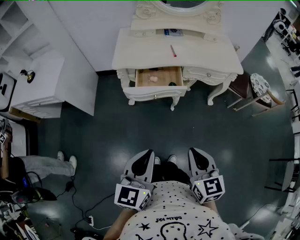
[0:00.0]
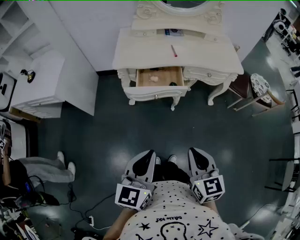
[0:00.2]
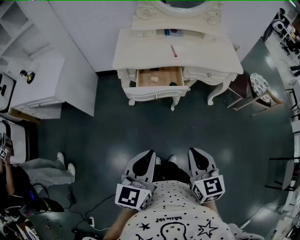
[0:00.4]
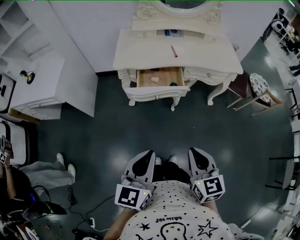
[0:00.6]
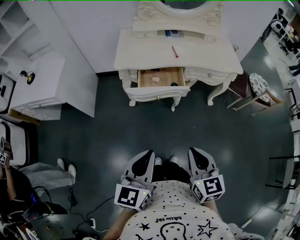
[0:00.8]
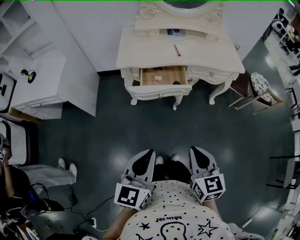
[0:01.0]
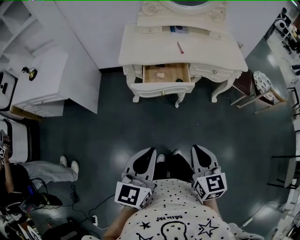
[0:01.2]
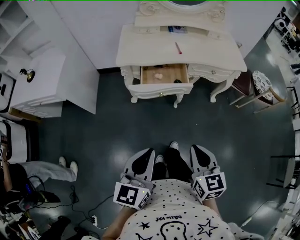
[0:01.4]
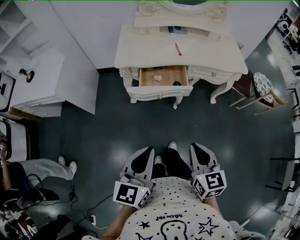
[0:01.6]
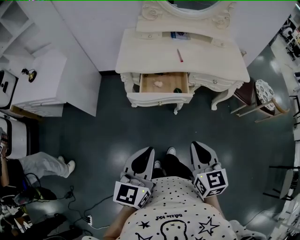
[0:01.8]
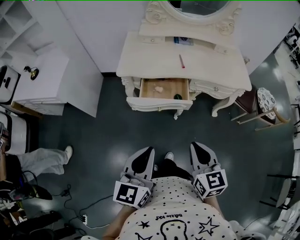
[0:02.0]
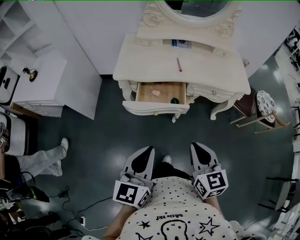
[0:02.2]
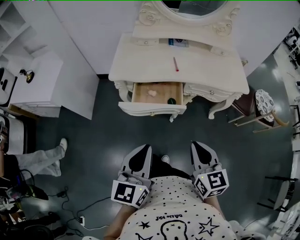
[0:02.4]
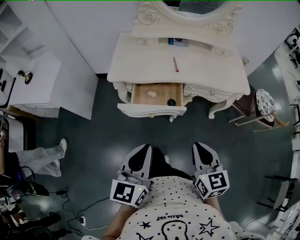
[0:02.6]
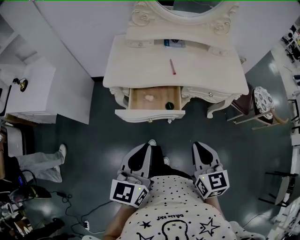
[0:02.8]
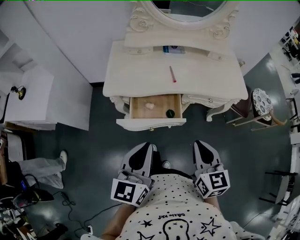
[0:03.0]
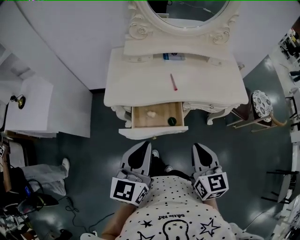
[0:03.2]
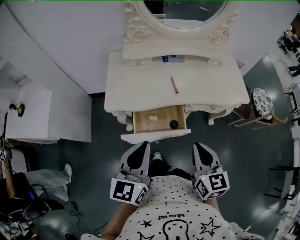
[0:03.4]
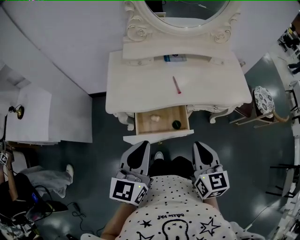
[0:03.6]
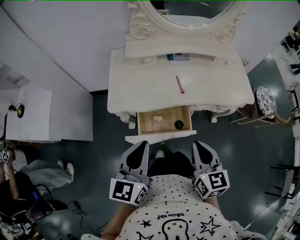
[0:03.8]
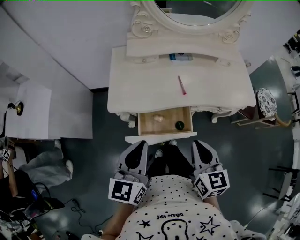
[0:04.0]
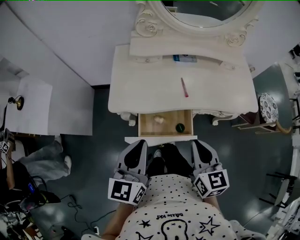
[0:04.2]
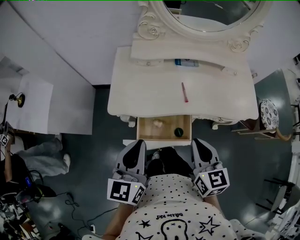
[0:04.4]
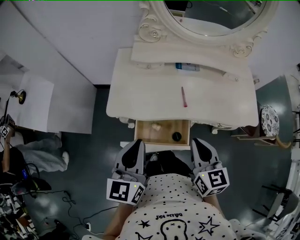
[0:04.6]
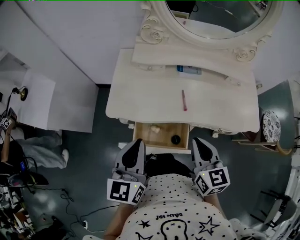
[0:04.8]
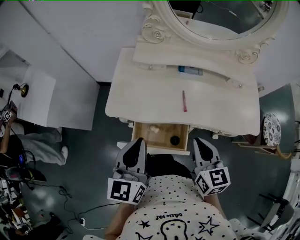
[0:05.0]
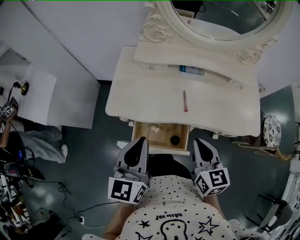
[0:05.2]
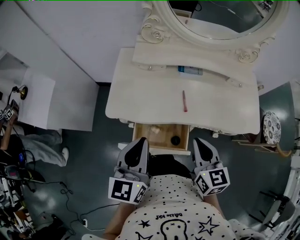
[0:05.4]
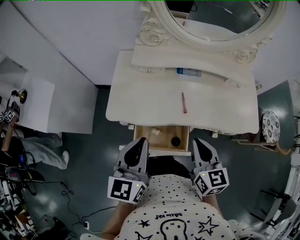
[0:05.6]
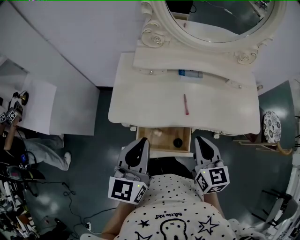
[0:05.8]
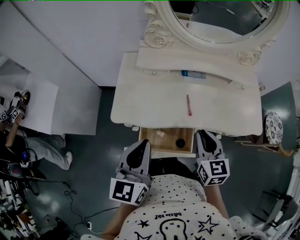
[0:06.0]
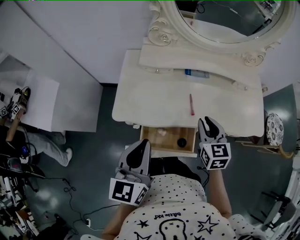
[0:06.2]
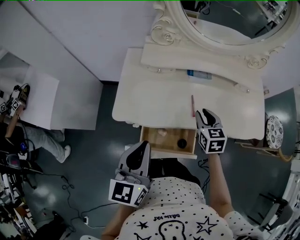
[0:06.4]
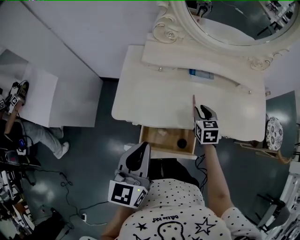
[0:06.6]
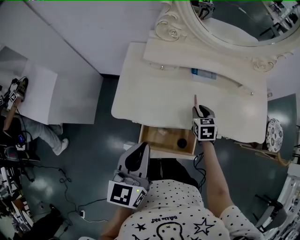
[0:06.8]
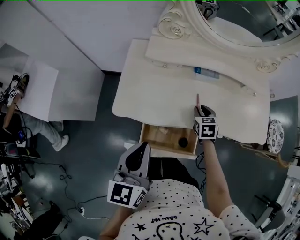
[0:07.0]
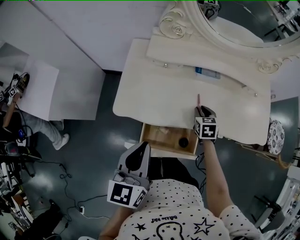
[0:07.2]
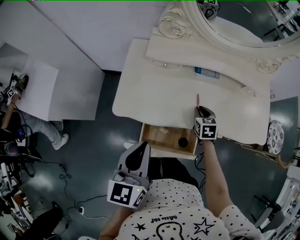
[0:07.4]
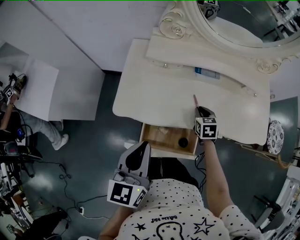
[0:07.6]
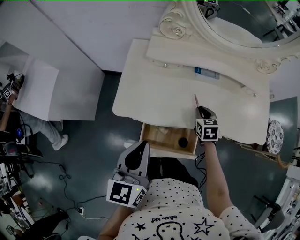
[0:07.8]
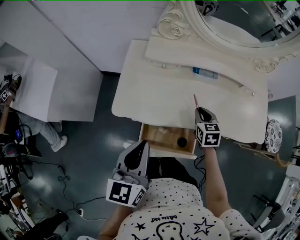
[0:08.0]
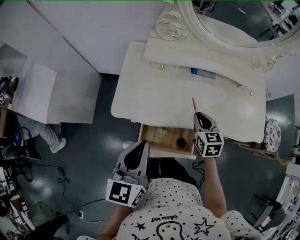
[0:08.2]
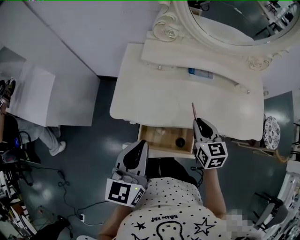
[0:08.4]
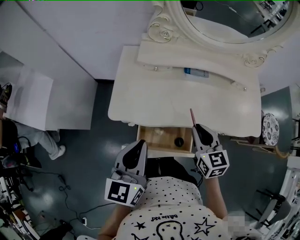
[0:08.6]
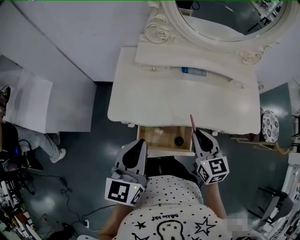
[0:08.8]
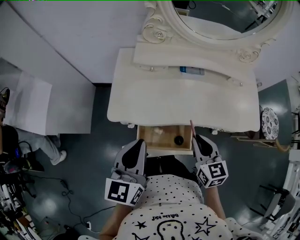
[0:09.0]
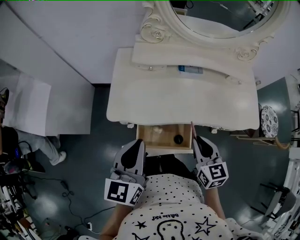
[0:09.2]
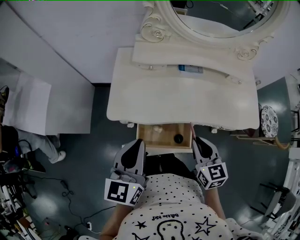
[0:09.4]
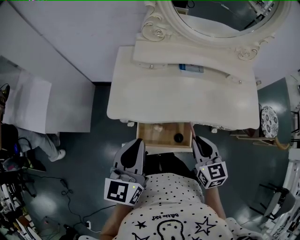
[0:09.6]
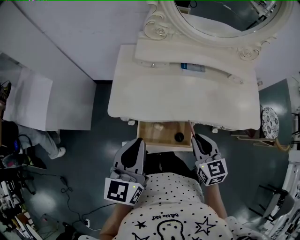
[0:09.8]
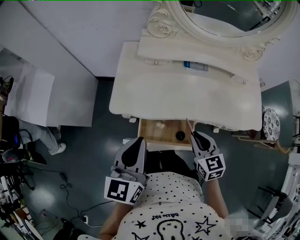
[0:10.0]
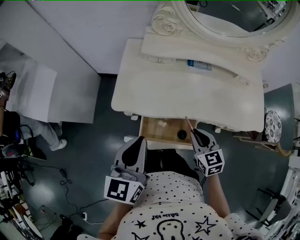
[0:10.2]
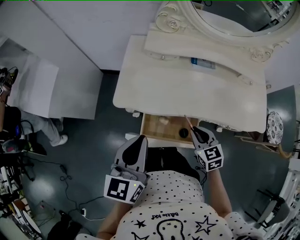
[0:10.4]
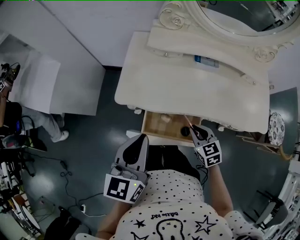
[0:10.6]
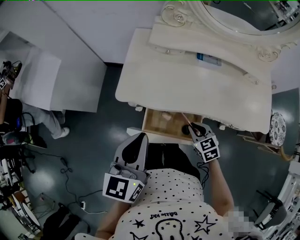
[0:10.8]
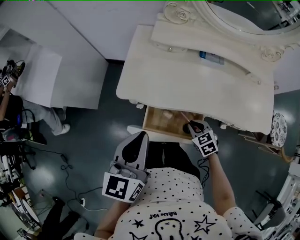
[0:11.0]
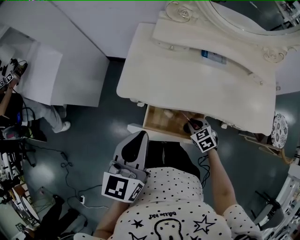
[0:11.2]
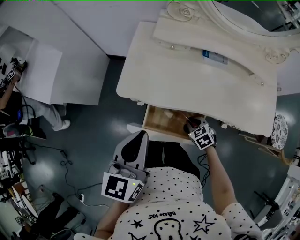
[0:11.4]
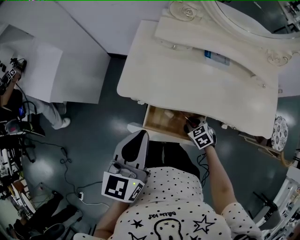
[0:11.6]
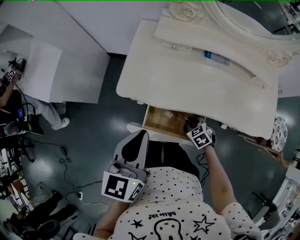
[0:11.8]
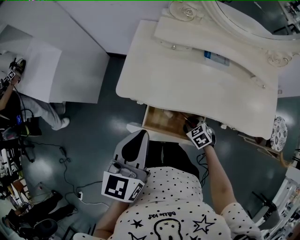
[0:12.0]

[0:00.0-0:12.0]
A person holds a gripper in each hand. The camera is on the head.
0:00.0 to 0:01.6: The grippers move only a little.
0:01.6 to 0:03.0: The two grippers go roughly 20 cm forward.
0:03.0 to 0:04.4: The right gripper moves forward, roughly 15 cm. The left gripper heads forward and to the left, covering approximately 15 cm.
0:04.4 to 0:06.0: The right gripper goes roughly 10 cm forward. Meanwhile the left gripper is displaced forward by approximately 5 cm.
0:06.0 to 0:07.6: The right gripper goes approximately 25 cm downward and forward, and swivels roughly 20 degrees.
0:07.6 to 0:09.0: The right gripper is displaced backward and upward by about 25 cm, and rotates roughly 20 degrees.
0:09.0 to 0:10.4: The right gripper shifts some 10 cm downward.
0:10.4 to 0:12.0: The right gripper is displaced downward by approximately 15 cm, and turns by some 30 degrees.

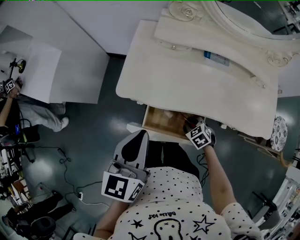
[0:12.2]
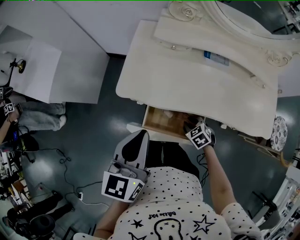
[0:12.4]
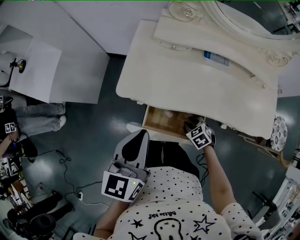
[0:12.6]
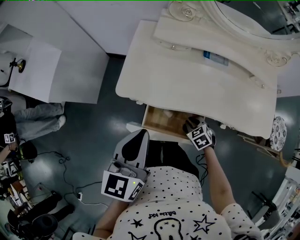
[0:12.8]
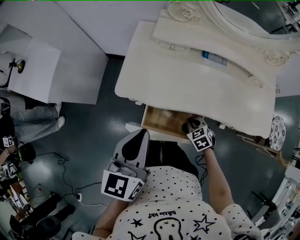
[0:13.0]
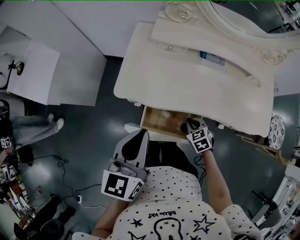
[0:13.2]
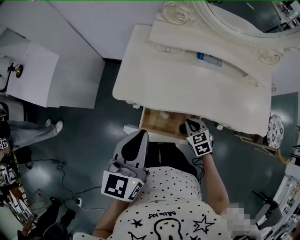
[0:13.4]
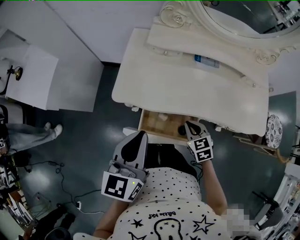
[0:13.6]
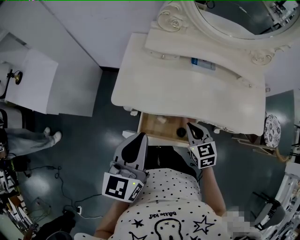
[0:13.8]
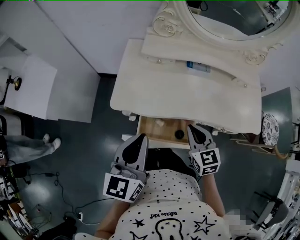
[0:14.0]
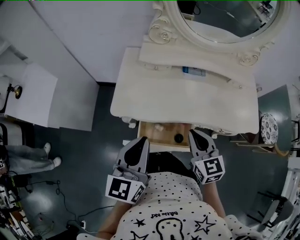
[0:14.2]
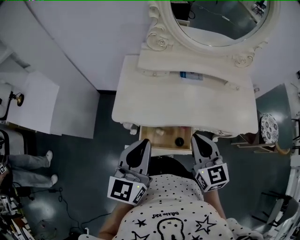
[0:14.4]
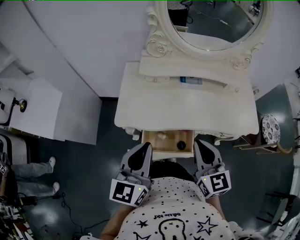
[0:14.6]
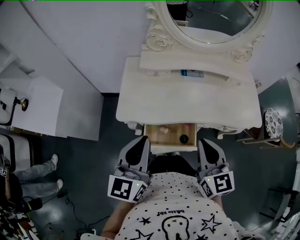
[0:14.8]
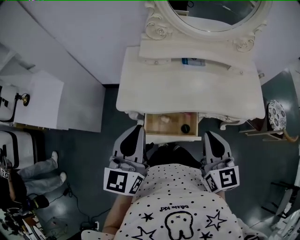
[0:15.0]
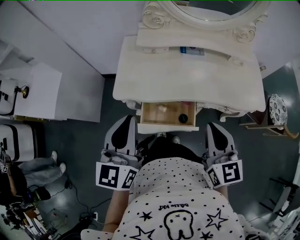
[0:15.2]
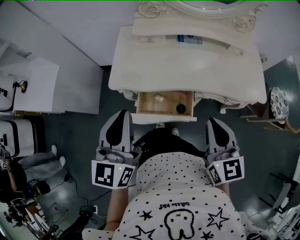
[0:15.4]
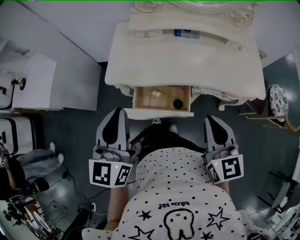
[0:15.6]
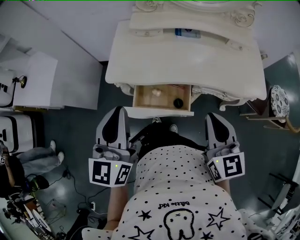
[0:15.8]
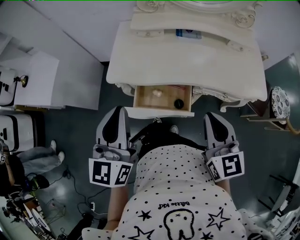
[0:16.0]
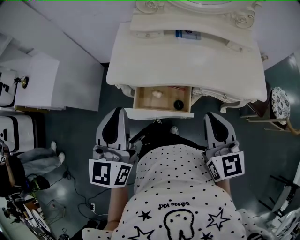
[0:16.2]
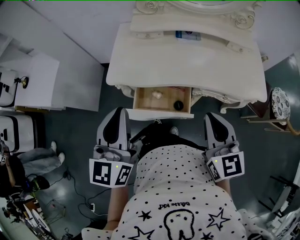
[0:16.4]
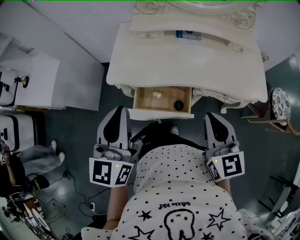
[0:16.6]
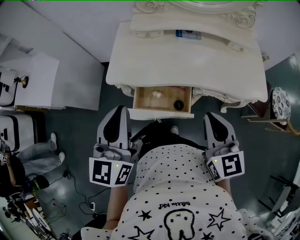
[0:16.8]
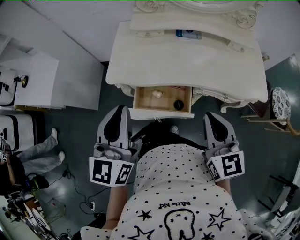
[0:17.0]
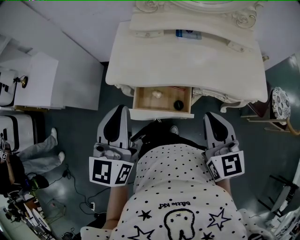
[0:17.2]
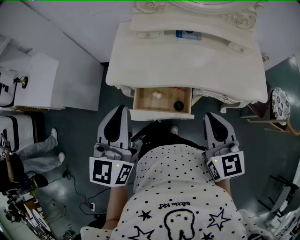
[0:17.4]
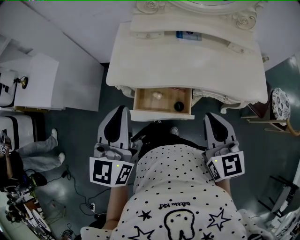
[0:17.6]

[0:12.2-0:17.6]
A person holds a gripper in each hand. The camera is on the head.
0:12.2 to 0:13.6: The right gripper shifts roughly 10 cm upward, and turns by approximately 20 degrees.
0:13.6 to 0:15.0: The left gripper is displaced upward by some 5 cm. The right gripper is displaced upward by roughly 25 cm, and angles its fingers upward, by some 30 degrees.
0:15.0 to 0:16.2: The left gripper goes approximately 5 cm backward. The right gripper moves some 5 cm.
0:16.2 to 0:17.6: The grippers make only small movements.

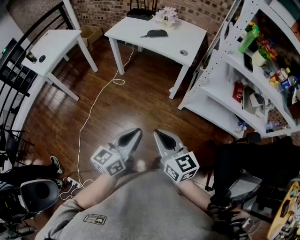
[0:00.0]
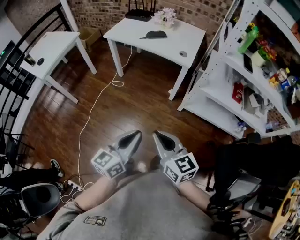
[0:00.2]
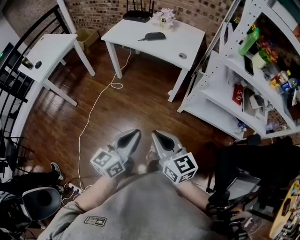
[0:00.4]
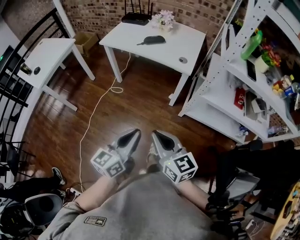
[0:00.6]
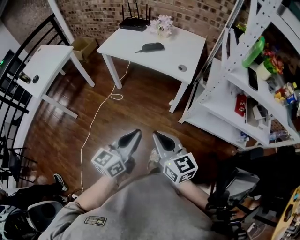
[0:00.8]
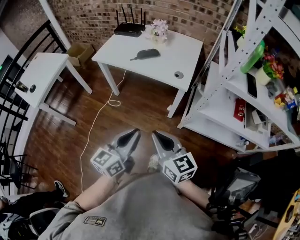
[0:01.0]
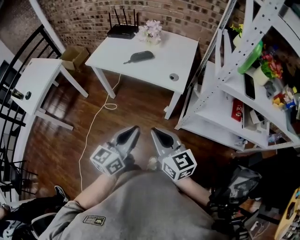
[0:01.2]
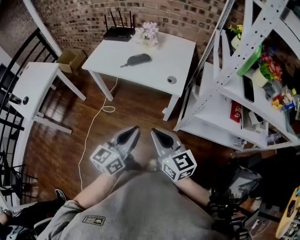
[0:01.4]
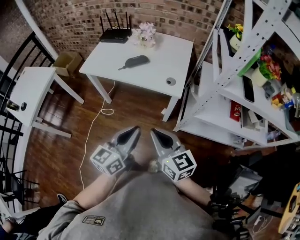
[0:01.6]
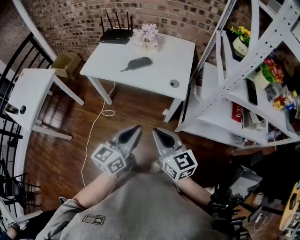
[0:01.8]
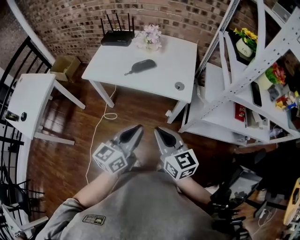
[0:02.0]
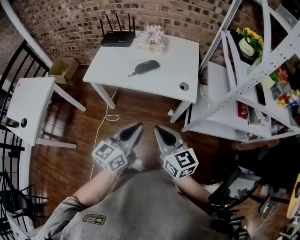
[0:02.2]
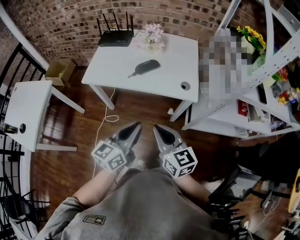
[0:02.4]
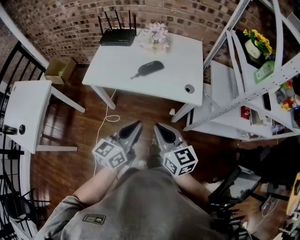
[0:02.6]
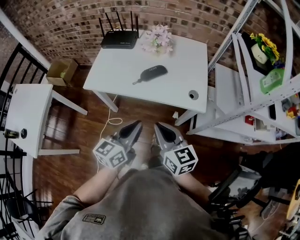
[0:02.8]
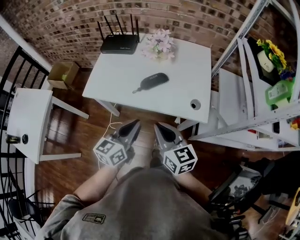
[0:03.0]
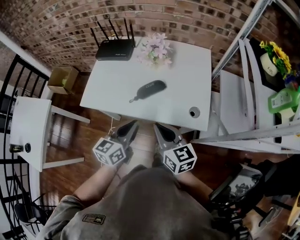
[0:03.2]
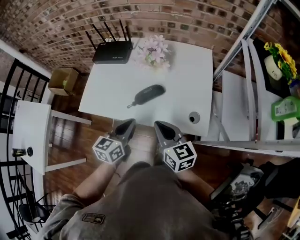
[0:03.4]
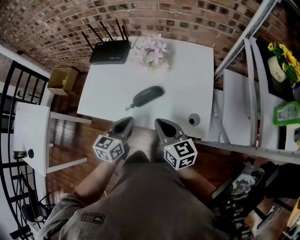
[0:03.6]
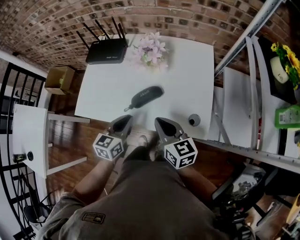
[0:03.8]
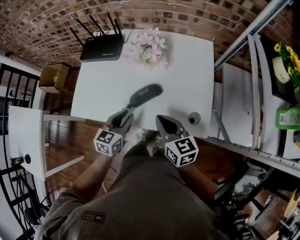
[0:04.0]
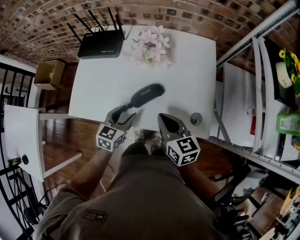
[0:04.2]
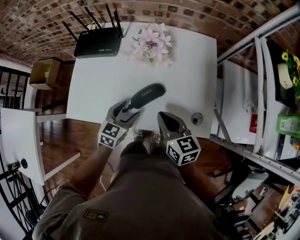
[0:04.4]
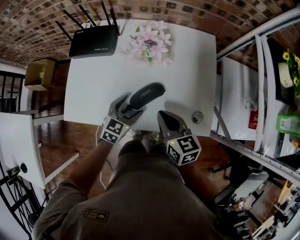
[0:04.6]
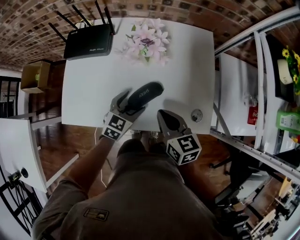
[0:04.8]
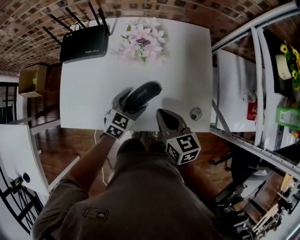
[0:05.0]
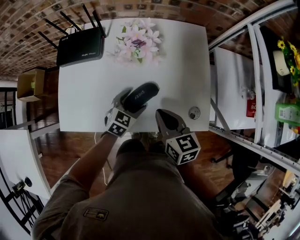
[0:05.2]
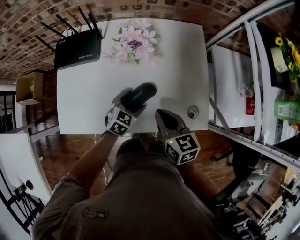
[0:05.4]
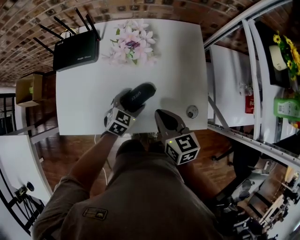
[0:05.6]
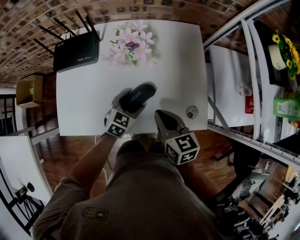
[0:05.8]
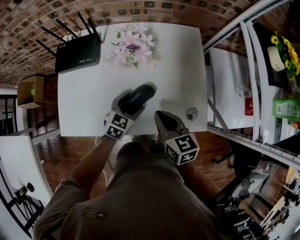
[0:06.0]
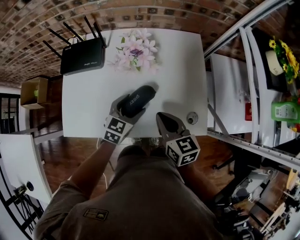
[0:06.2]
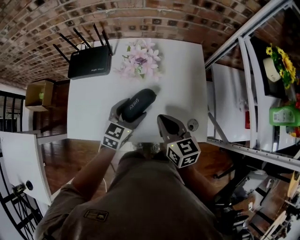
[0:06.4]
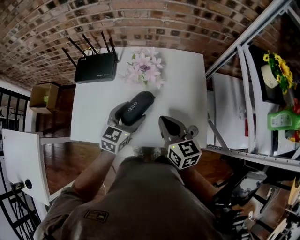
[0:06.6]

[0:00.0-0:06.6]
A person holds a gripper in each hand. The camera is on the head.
0:00.0 to 0:01.6: The two grippers go approximately 30 cm forward.
0:01.6 to 0:03.2: The grippers both shift forward and to the left by about 30 cm.
0:03.2 to 0:05.0: The left gripper moves forward and downward, about 25 cm, turns by approximately 40 degrees, and opens up, while the right gripper is displaced forward and downward by some 15 cm.
0:05.0 to 0:06.6: The right gripper moves upward, about 5 cm. Meanwhile the left gripper heads upward, covering some 10 cm.
